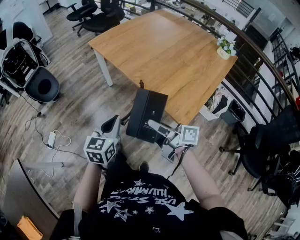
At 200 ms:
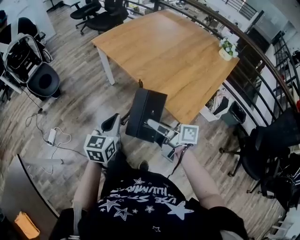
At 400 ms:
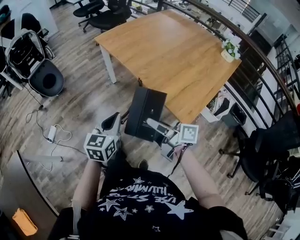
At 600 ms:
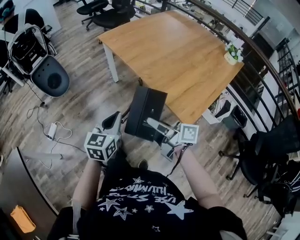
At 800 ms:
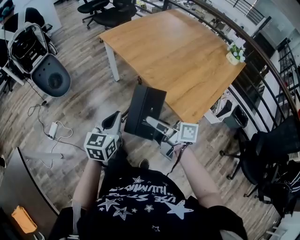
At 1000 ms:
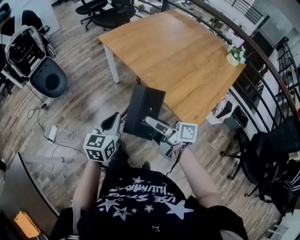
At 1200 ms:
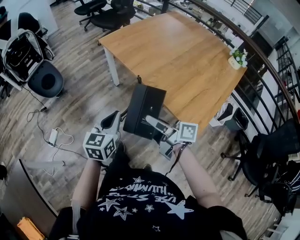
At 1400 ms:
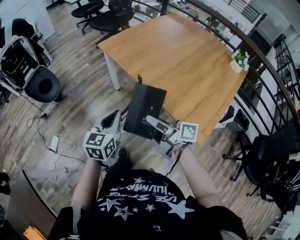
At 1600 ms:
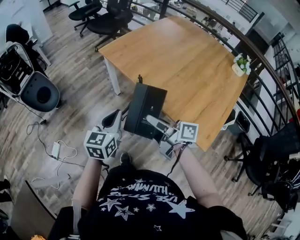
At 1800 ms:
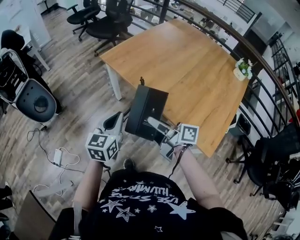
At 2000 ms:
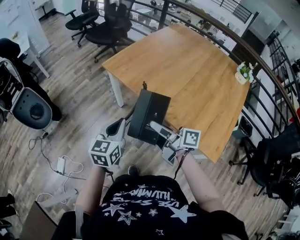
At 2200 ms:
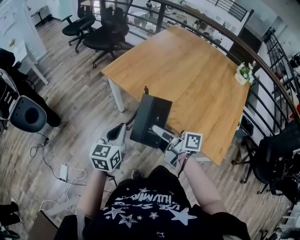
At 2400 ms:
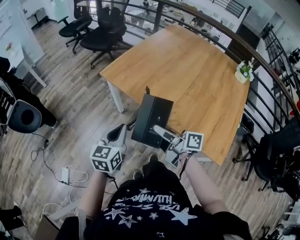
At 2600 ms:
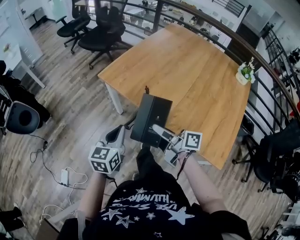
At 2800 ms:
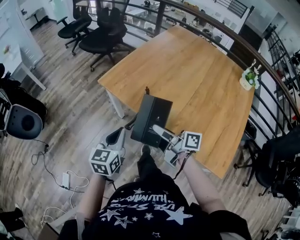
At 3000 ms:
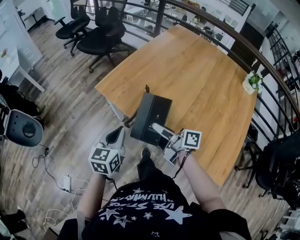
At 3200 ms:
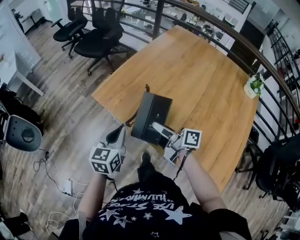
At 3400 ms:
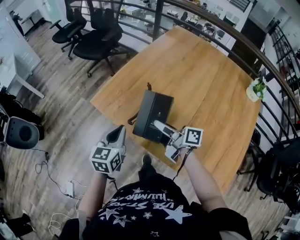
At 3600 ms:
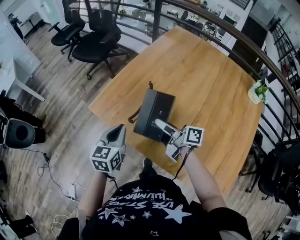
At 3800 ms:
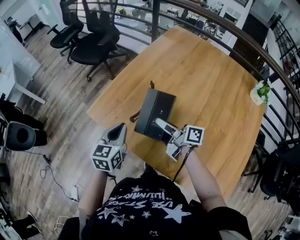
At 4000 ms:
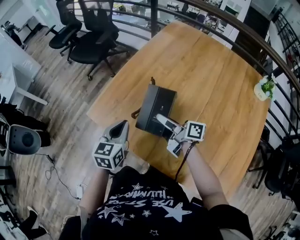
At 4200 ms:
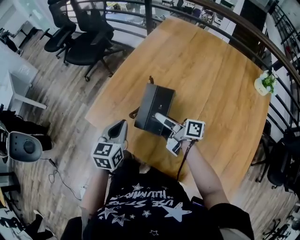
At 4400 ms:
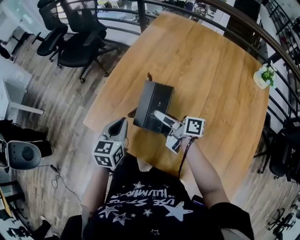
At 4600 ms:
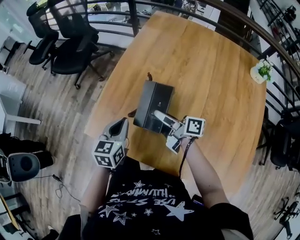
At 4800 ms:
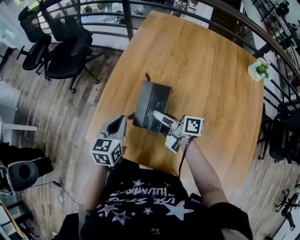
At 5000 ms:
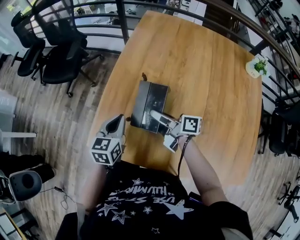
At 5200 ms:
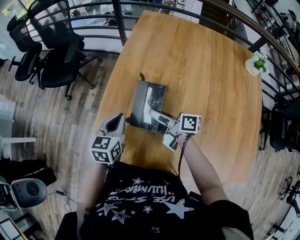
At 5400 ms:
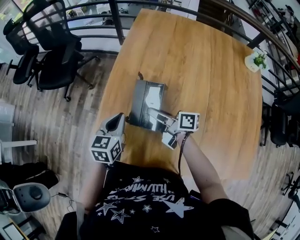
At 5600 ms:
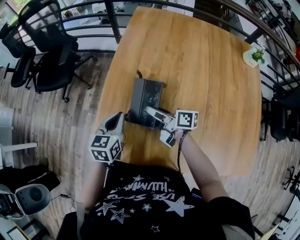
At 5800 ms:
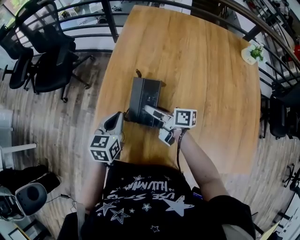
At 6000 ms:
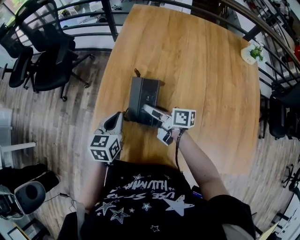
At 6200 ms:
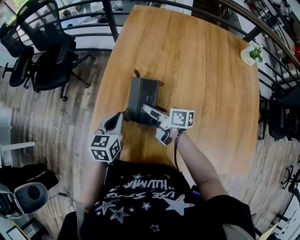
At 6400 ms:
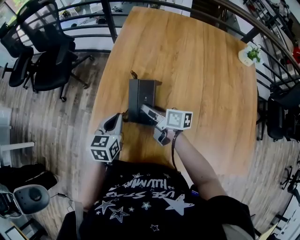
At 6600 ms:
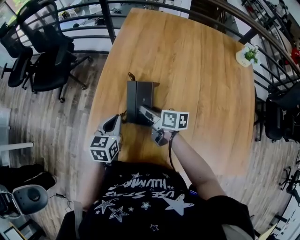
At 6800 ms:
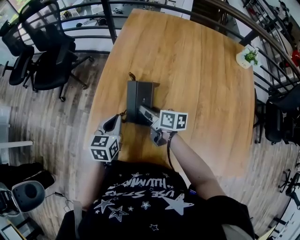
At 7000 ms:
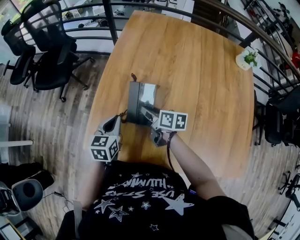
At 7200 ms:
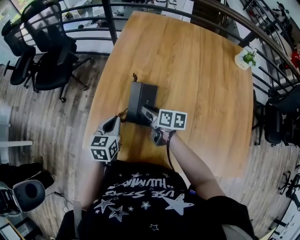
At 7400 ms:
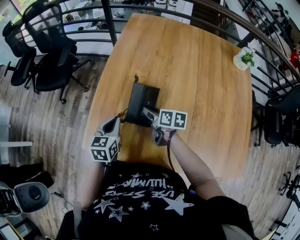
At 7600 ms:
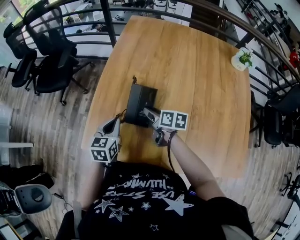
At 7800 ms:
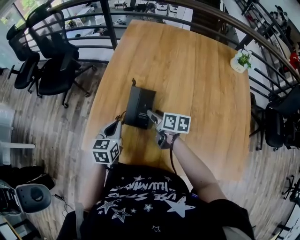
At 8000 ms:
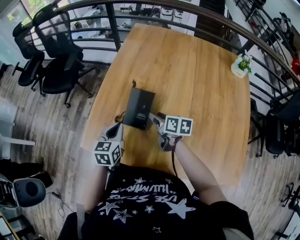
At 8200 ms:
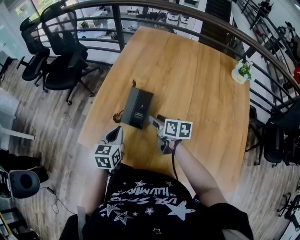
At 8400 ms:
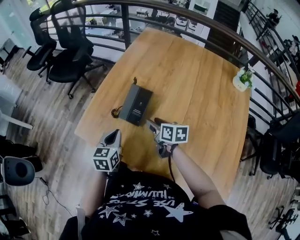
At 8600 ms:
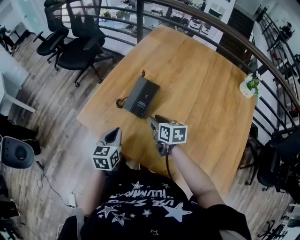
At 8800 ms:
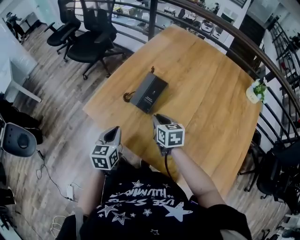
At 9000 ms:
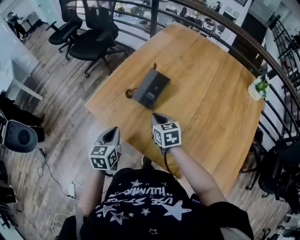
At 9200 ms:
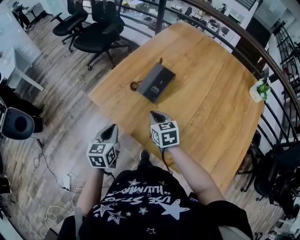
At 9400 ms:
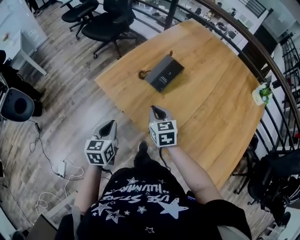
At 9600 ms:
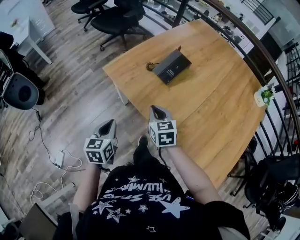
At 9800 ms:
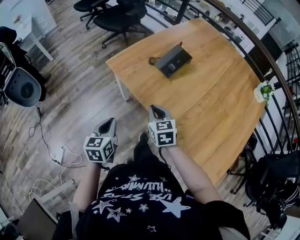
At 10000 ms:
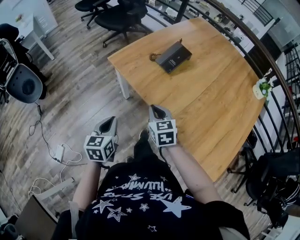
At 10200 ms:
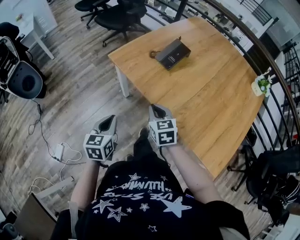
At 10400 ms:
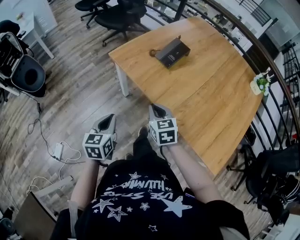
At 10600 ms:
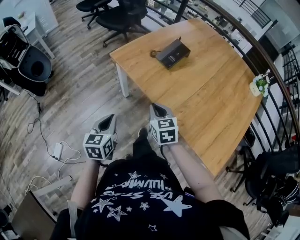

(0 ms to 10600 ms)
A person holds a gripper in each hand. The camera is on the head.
0 ms - 1600 ms: The left gripper moves forward, approximately 20 cm; the right gripper goes about 20 cm forward and to the left.
1600 ms - 3000 ms: The grippers both shift forward by about 20 cm.
3000 ms - 4600 ms: The two grippers go some 25 cm forward.
4600 ms - 6000 ms: The left gripper moves forward, approximately 10 cm. The right gripper heads forward and to the left, covering approximately 10 cm.
6000 ms - 7600 ms: The right gripper heads to the right, covering approximately 5 cm, and rotates roughly 30 degrees.
7600 ms - 9000 ms: The left gripper moves backward, roughly 20 cm, and swivels approximately 20 degrees. Meanwhile the right gripper travels backward by about 10 cm, twists about 50 degrees counterclockwise, seen from behind, and closes its fingers.
9000 ms - 10600 ms: The left gripper moves backward, some 25 cm, while the right gripper is displaced backward and to the left by some 25 cm.

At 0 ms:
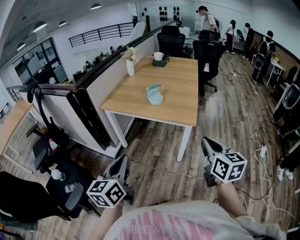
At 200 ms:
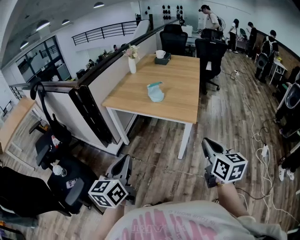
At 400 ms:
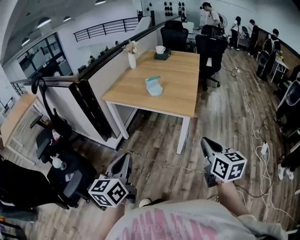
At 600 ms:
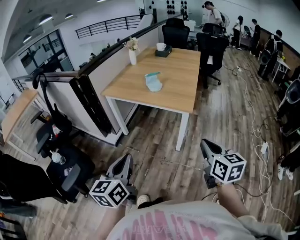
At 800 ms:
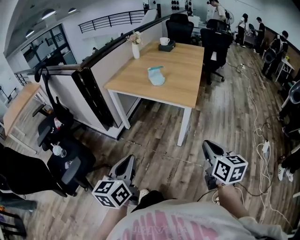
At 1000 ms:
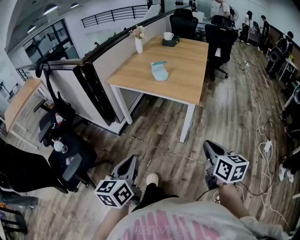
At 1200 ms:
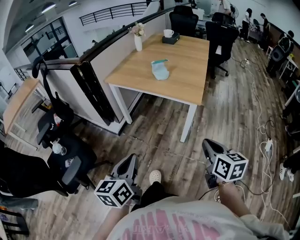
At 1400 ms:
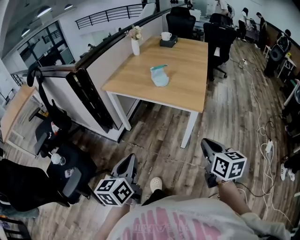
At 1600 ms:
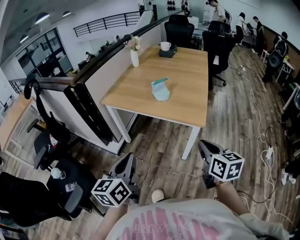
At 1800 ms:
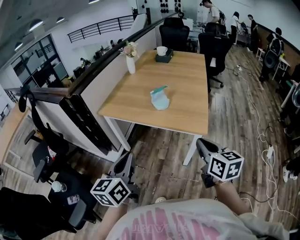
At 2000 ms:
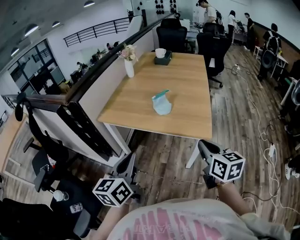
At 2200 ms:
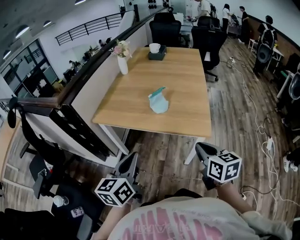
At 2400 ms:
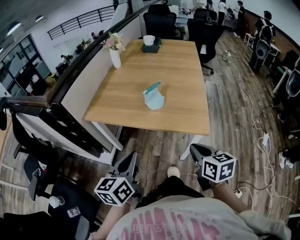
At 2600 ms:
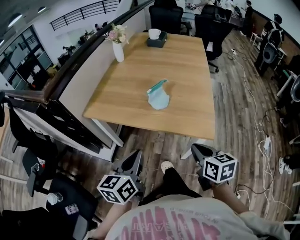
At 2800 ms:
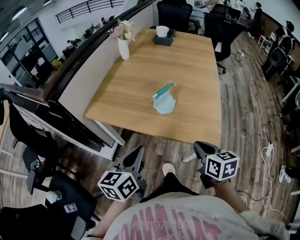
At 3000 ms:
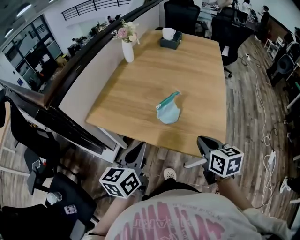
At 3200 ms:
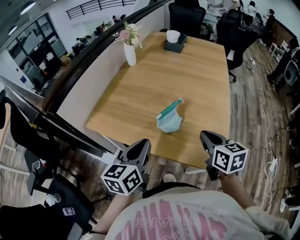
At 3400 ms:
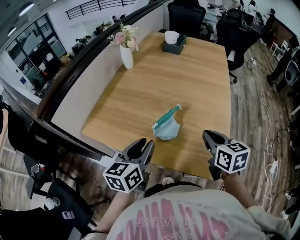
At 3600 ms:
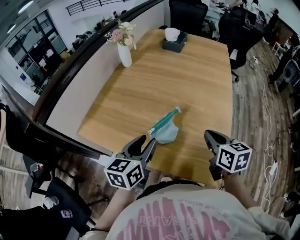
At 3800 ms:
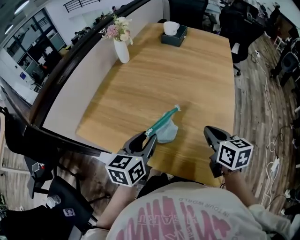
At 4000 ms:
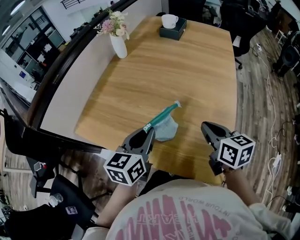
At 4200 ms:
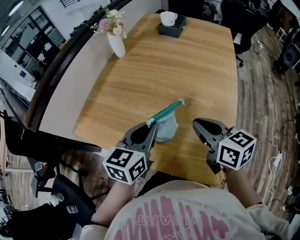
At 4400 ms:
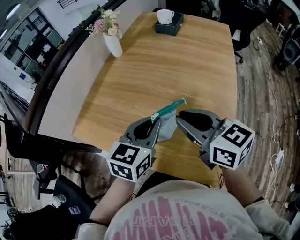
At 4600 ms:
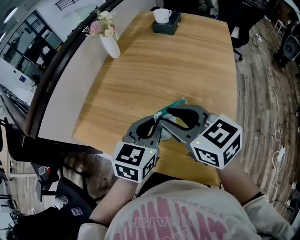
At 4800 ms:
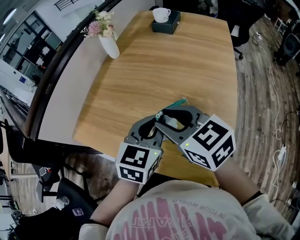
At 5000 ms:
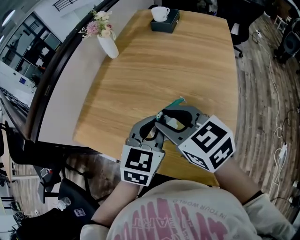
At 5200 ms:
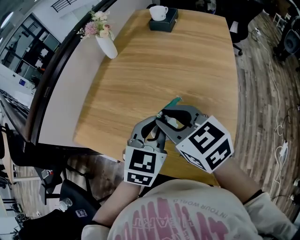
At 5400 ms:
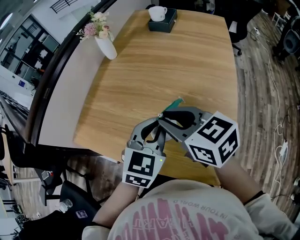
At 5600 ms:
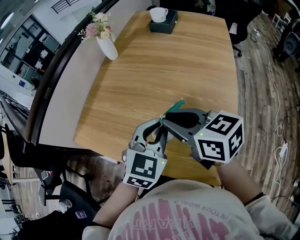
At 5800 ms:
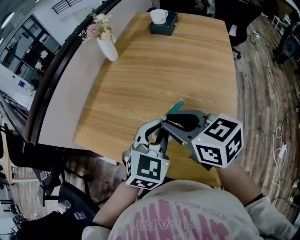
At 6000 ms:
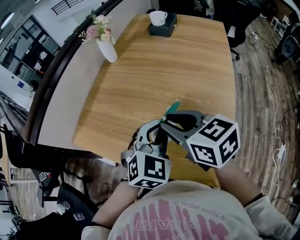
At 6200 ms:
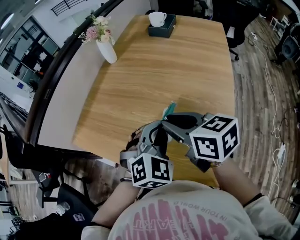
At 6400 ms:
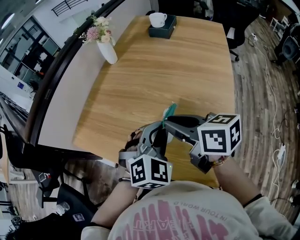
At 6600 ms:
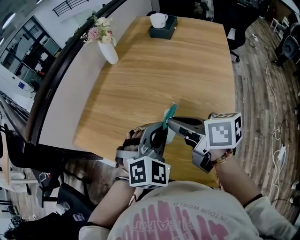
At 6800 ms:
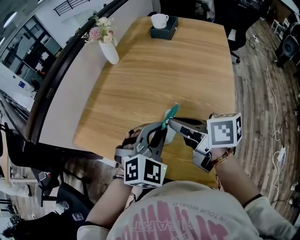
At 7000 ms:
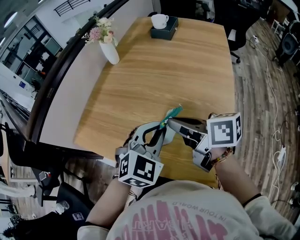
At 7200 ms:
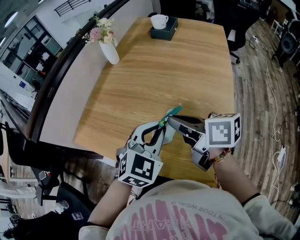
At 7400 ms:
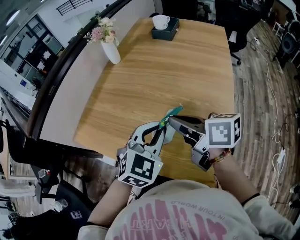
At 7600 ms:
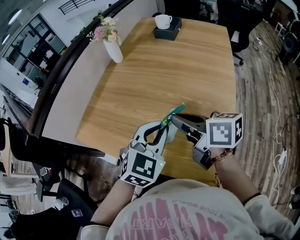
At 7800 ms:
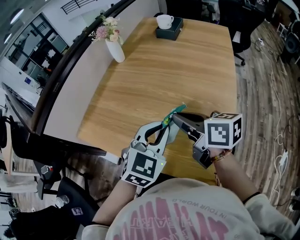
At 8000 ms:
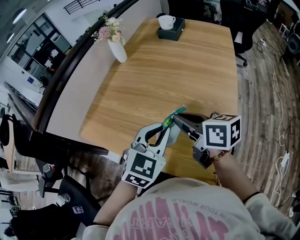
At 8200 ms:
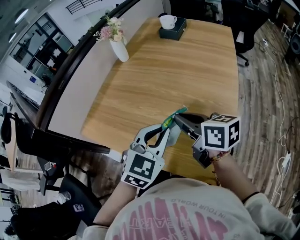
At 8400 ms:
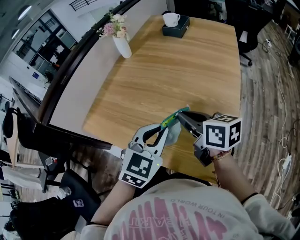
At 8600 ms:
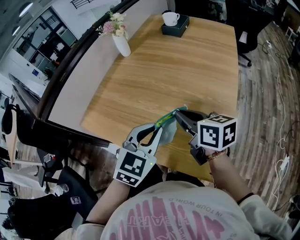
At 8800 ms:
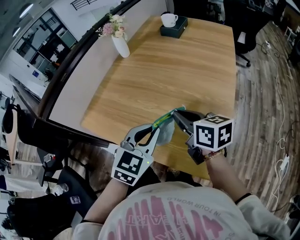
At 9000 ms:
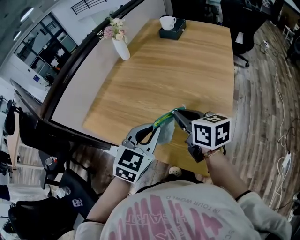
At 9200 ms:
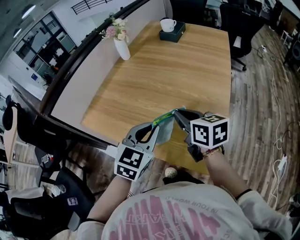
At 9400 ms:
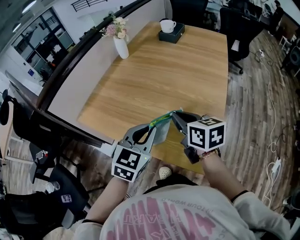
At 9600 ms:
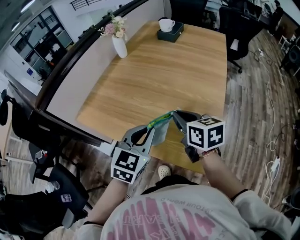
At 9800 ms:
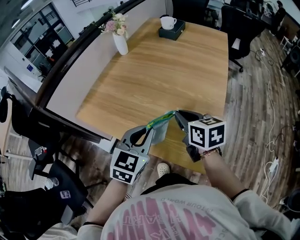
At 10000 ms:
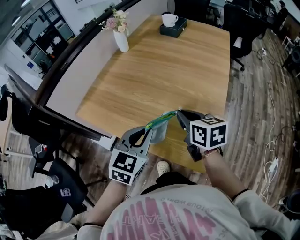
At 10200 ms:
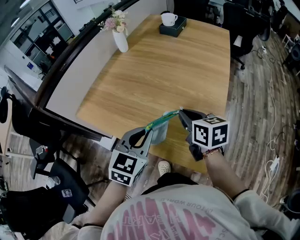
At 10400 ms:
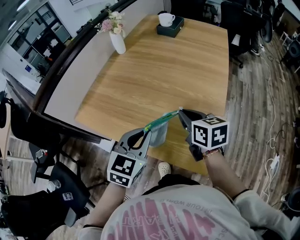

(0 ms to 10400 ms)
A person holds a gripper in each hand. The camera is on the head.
0 ms - 1400 ms: Both grippers travel together downward, roughly 10 cm. The left gripper goes backward and returns, some 10 cm each way. The right gripper goes backward and returns, some 10 cm each way.
1400 ms - 3000 ms: The grippers both shift forward by about 40 cm.
3000 ms - 4400 ms: The left gripper travels forward and to the right by roughly 25 cm, turns by approximately 20 degrees, and opens and closes again; the right gripper heads forward and upward, covering roughly 20 cm, and turns by approximately 30 degrees.
4400 ms - 6000 ms: The left gripper swivels roughly 40 degrees.
6000 ms - 7400 ms: The right gripper rotates approximately 30 degrees, and closes.
7400 ms - 9000 ms: The right gripper ends up some 5 cm from where it was. The left gripper shifts about 5 cm backward.
9000 ms - 10400 ms: There are only small adjustments of the grippers.

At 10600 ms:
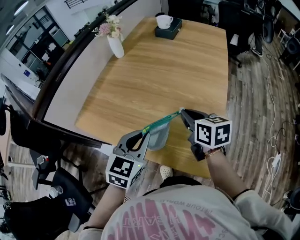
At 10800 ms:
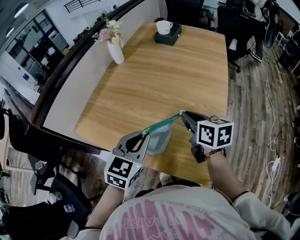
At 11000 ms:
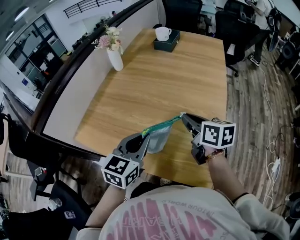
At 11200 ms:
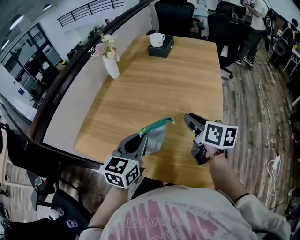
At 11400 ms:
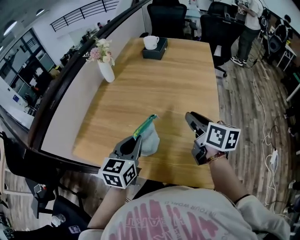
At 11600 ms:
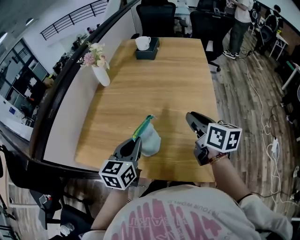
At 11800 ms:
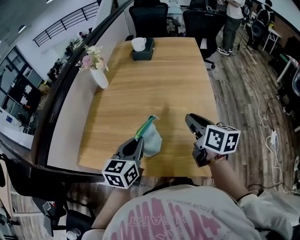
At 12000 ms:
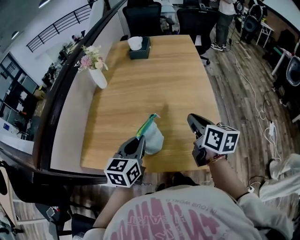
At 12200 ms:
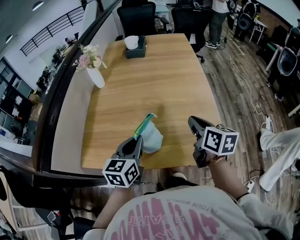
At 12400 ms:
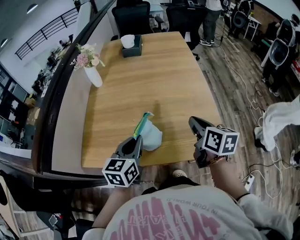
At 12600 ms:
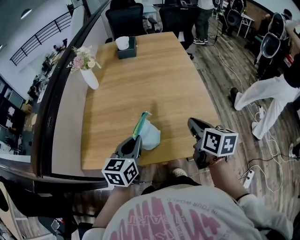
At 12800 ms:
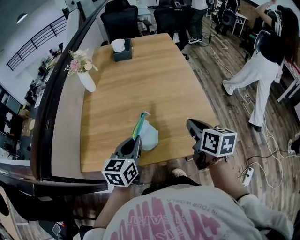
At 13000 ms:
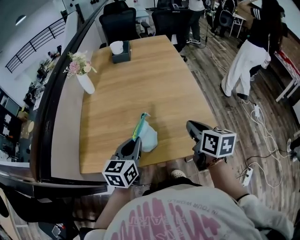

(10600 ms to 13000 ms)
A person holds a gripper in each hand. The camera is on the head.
10600 ms - 11800 ms: The right gripper moves about 5 cm, and rotates some 30 degrees; the left gripper shifts some 10 cm forward and to the left.
11800 ms - 13000 ms: The right gripper heads backward, covering about 10 cm. Meanwhile the left gripper shifts approximately 5 cm backward.
